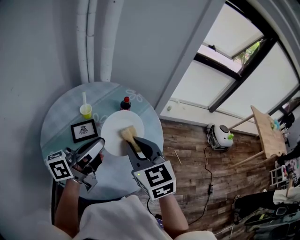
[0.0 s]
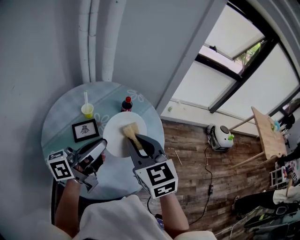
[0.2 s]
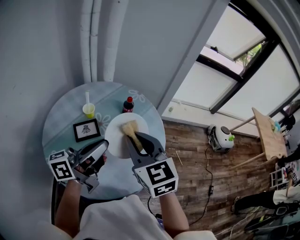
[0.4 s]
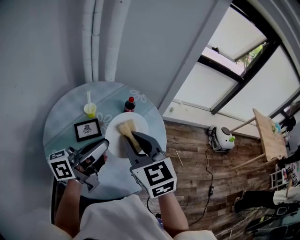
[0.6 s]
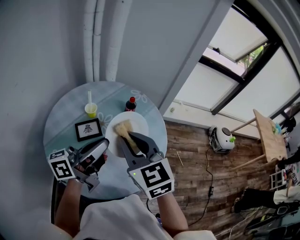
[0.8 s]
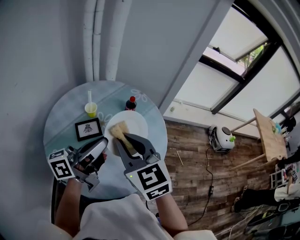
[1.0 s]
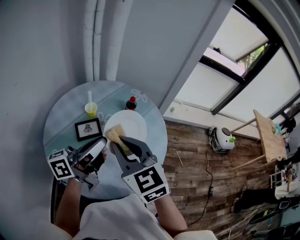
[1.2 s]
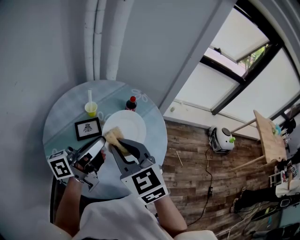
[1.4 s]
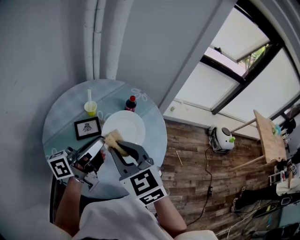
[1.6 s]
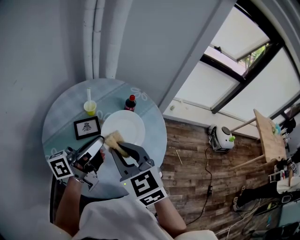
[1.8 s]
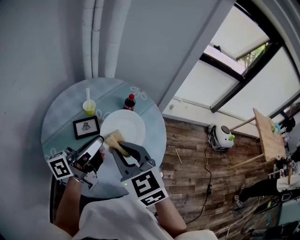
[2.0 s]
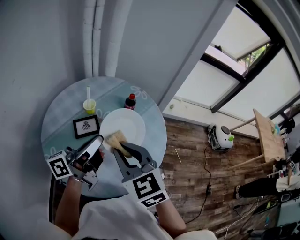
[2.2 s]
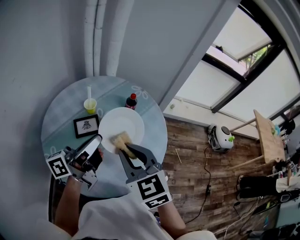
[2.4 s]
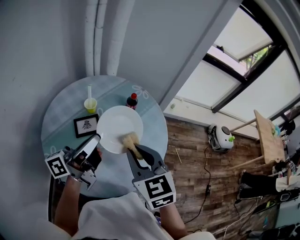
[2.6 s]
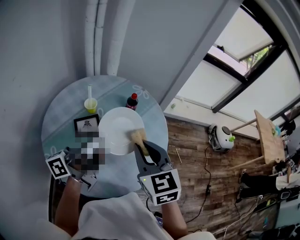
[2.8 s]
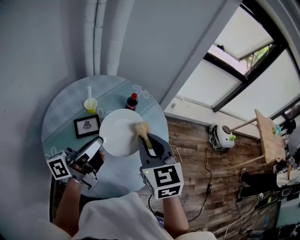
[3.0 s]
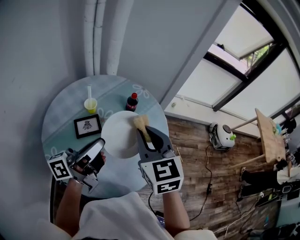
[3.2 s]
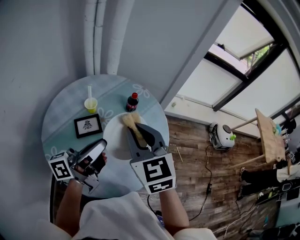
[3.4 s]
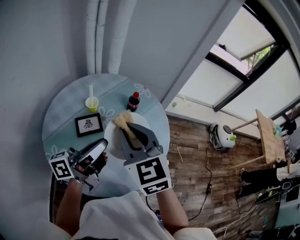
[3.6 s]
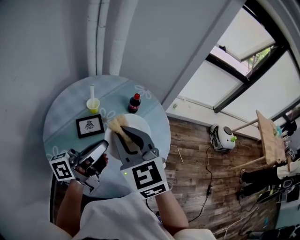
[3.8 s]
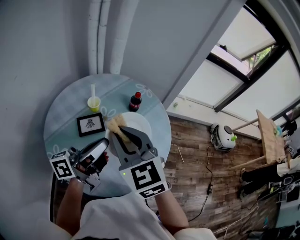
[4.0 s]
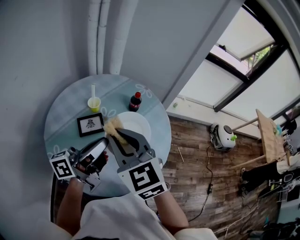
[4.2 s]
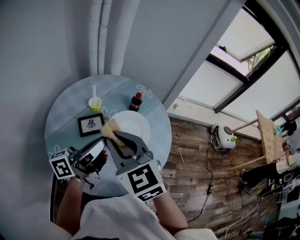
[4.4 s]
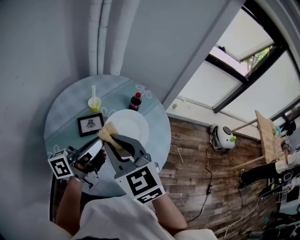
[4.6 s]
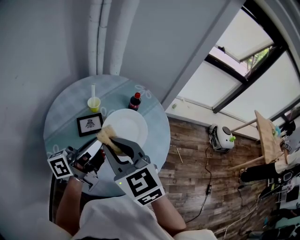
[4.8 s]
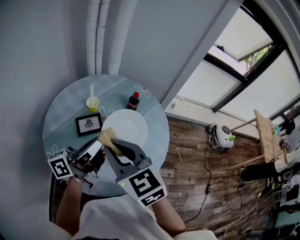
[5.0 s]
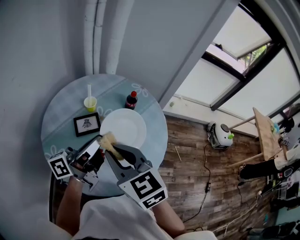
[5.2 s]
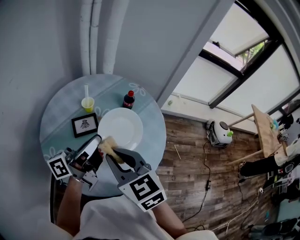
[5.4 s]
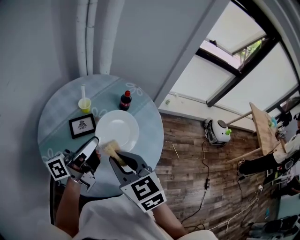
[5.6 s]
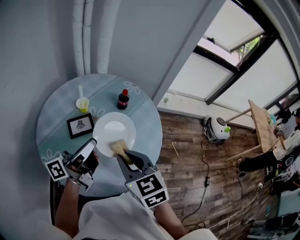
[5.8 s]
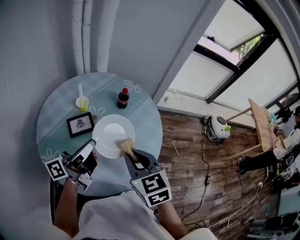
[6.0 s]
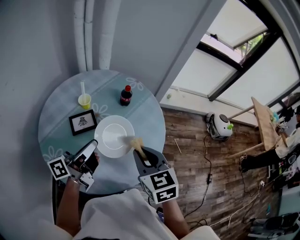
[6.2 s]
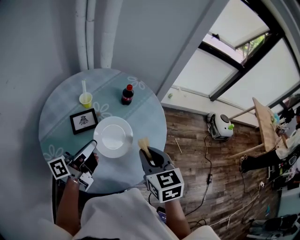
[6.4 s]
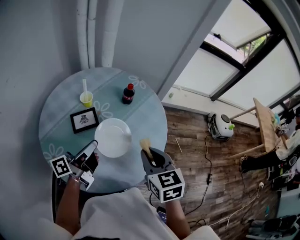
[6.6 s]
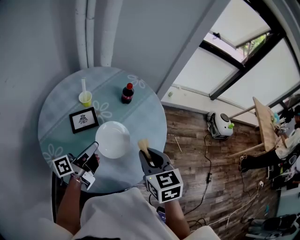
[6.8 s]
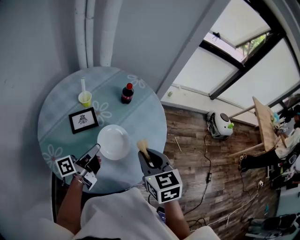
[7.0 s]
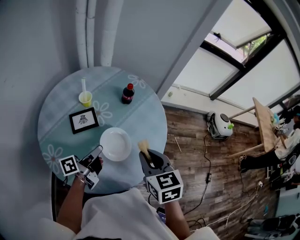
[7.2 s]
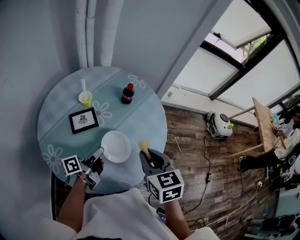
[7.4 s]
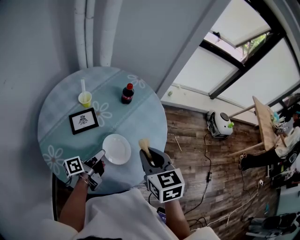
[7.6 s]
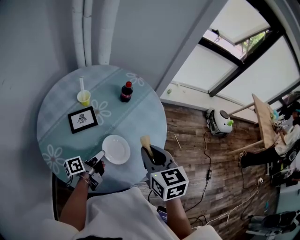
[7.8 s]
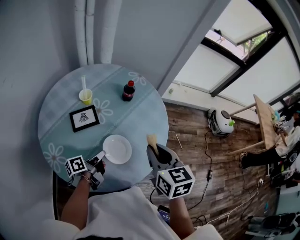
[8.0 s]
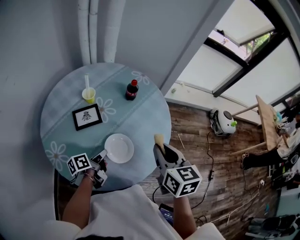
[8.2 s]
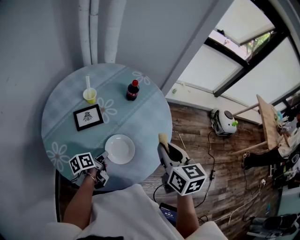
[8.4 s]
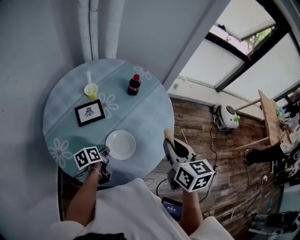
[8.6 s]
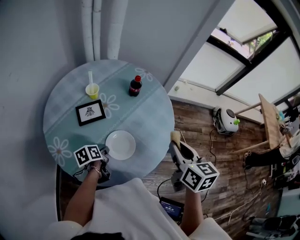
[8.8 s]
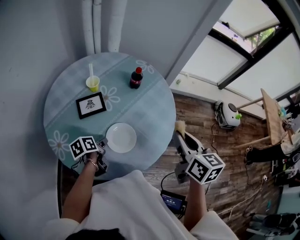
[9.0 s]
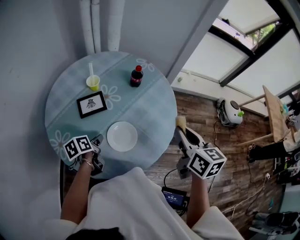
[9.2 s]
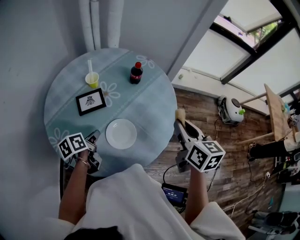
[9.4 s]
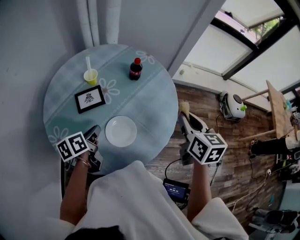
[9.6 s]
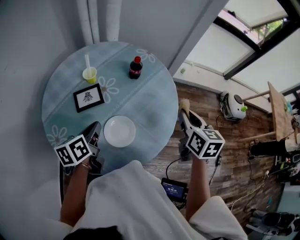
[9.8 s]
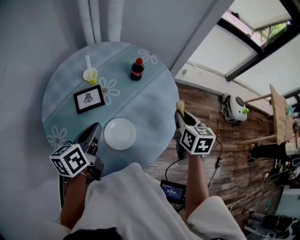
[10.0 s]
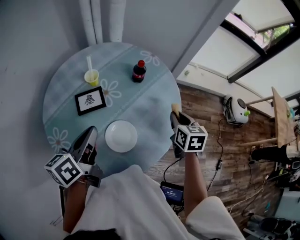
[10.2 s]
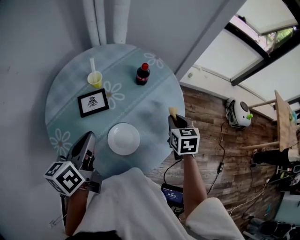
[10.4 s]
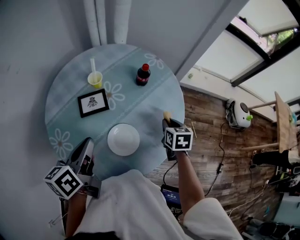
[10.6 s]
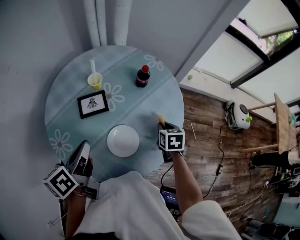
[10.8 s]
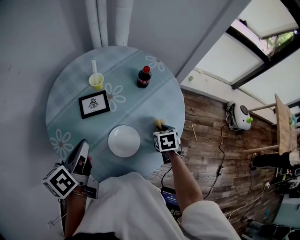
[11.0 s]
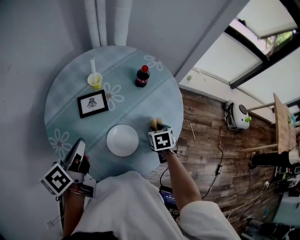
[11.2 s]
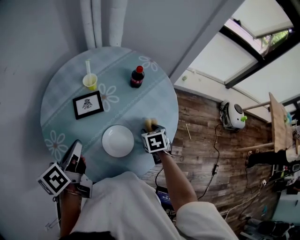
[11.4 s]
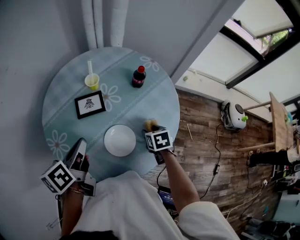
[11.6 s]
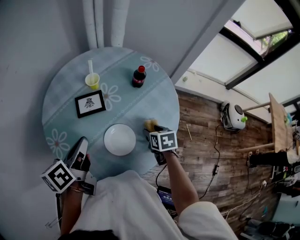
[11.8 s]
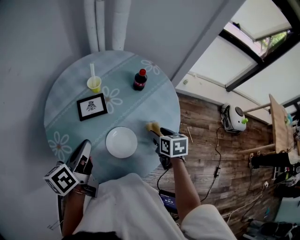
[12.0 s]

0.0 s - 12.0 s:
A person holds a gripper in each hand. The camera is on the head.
0.0 s - 1.6 s: The right gripper heads to the left, covering roughly 5 cm.
1.6 s - 3.0 s: The right gripper moves to the right and forward, roughly 10 cm.
3.0 s - 4.4 s: The right gripper shifts about 10 cm to the left.
4.4 s - 6.0 s: The left gripper goes approximately 5 cm downward; the right gripper heads to the right and downward, covering approximately 15 cm, and swivels some 20 degrees.
6.0 s - 7.6 s: The left gripper moves downward, about 20 cm, and turns by some 30 degrees.
7.6 s - 9.0 s: The left gripper travels downward by about 5 cm, and angles its fingers downward, by some 40 degrees; the right gripper shifts about 10 cm to the right, and rotates some 20 degrees.
9.0 s - 10.4 s: The right gripper shifts about 20 cm downward and forward, and changes its angle by roughly 30 degrees; the left gripper is displaced upward by about 20 cm, turns by approximately 40 degrees, and closes.
10.4 s - 12.0 s: The right gripper moves to the left, roughly 5 cm, and opens up.

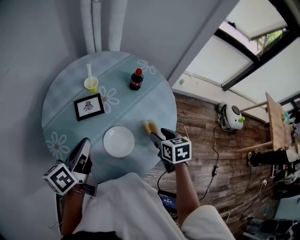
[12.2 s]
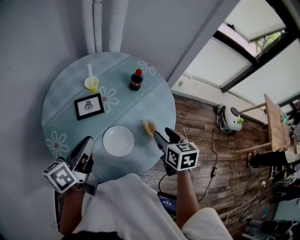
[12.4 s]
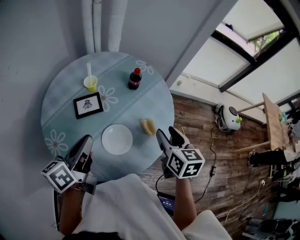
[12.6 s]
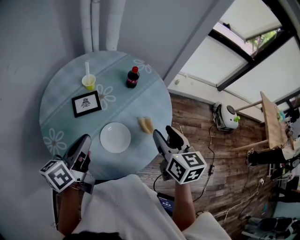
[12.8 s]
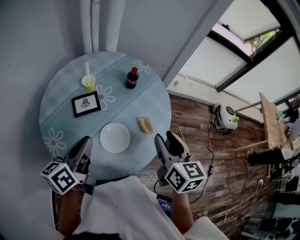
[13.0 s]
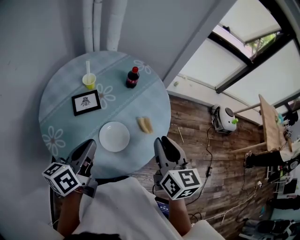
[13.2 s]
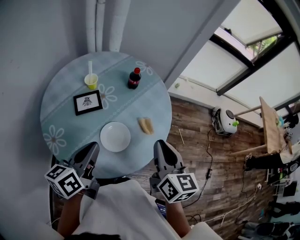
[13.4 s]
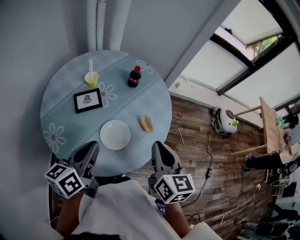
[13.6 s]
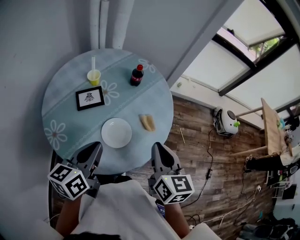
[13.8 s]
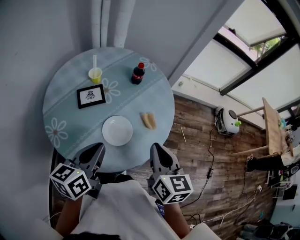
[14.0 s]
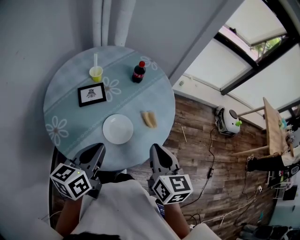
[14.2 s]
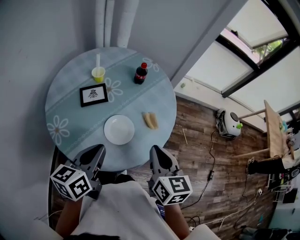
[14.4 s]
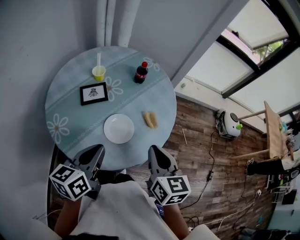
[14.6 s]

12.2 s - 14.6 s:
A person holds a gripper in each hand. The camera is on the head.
12.2 s - 13.4 s: The left gripper shifts by about 5 cm. Meanwhile the right gripper goes some 20 cm upward and backward, points its fingers approximately 30 degrees further upward, and closes up.
13.4 s - 14.6 s: The right gripper shifts by some 5 cm, while the left gripper ends up about 5 cm from where it was.

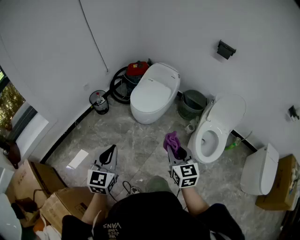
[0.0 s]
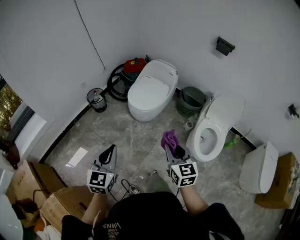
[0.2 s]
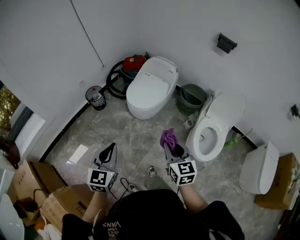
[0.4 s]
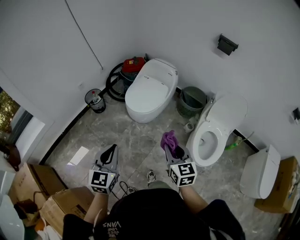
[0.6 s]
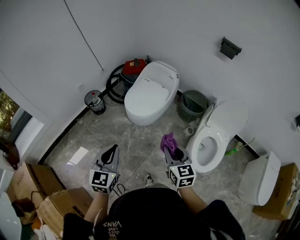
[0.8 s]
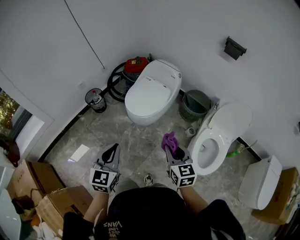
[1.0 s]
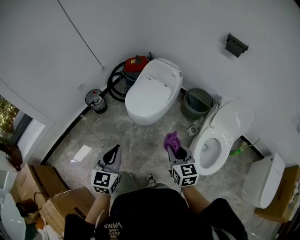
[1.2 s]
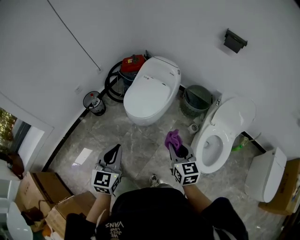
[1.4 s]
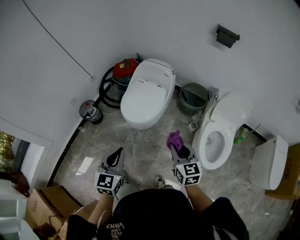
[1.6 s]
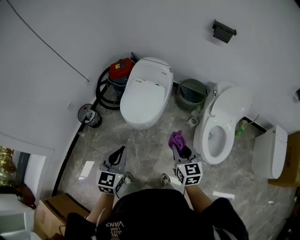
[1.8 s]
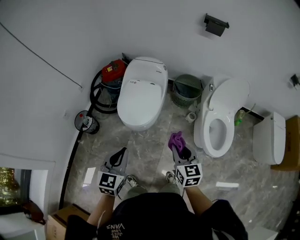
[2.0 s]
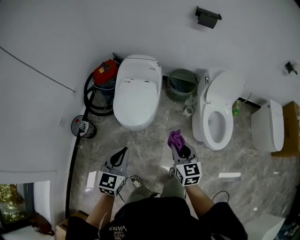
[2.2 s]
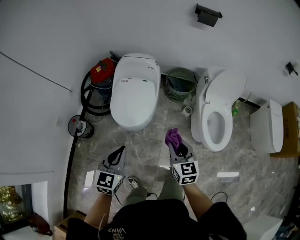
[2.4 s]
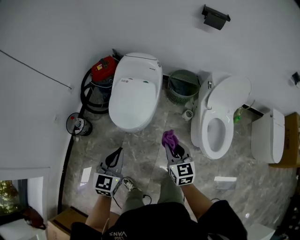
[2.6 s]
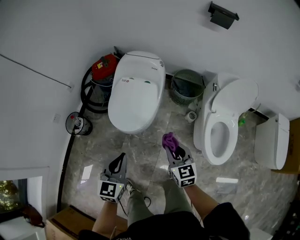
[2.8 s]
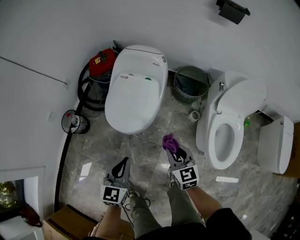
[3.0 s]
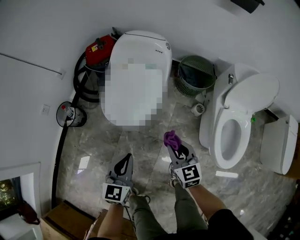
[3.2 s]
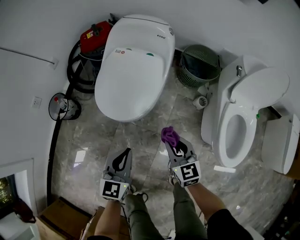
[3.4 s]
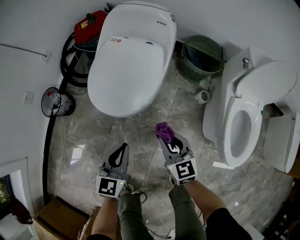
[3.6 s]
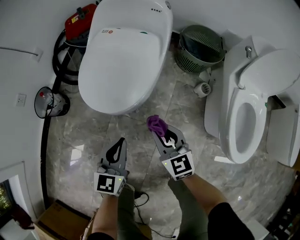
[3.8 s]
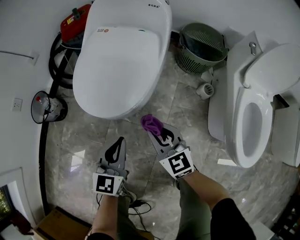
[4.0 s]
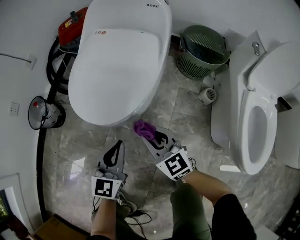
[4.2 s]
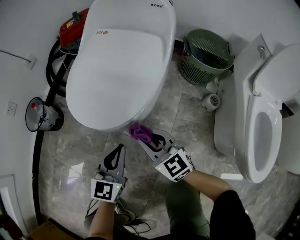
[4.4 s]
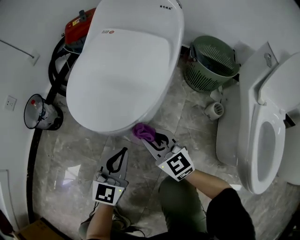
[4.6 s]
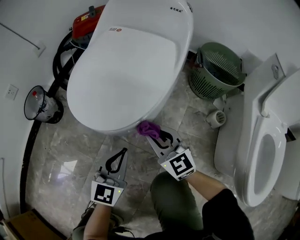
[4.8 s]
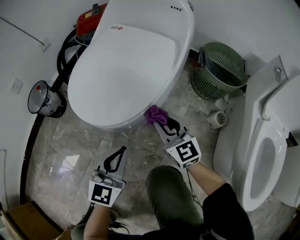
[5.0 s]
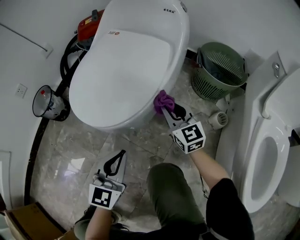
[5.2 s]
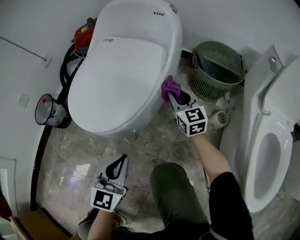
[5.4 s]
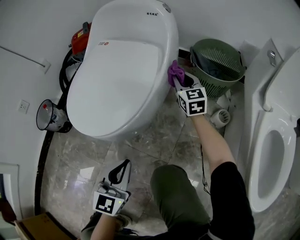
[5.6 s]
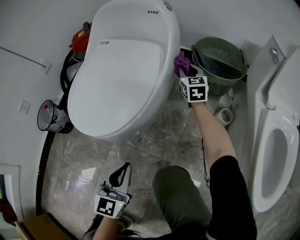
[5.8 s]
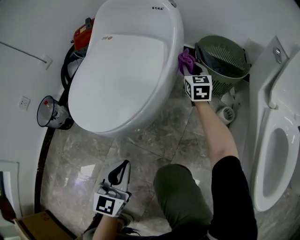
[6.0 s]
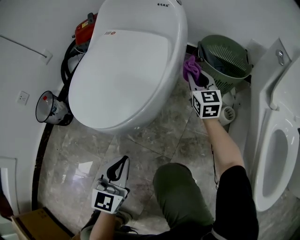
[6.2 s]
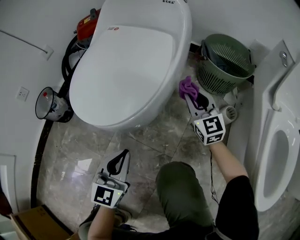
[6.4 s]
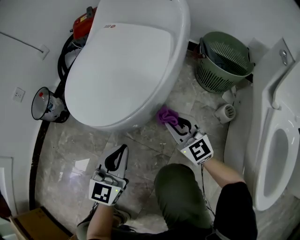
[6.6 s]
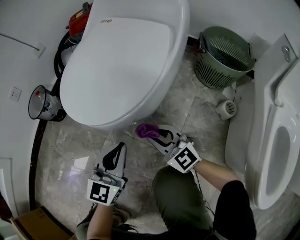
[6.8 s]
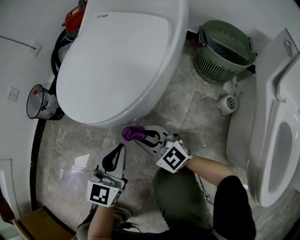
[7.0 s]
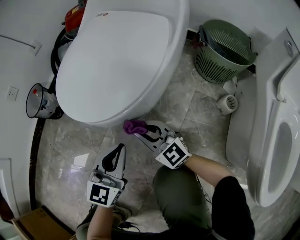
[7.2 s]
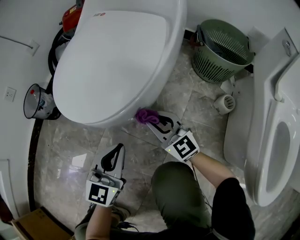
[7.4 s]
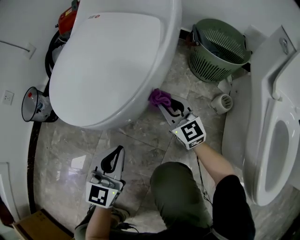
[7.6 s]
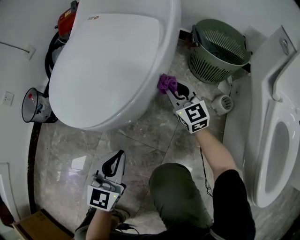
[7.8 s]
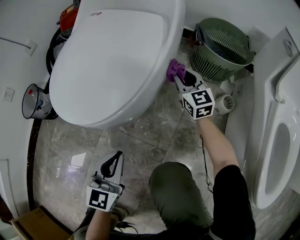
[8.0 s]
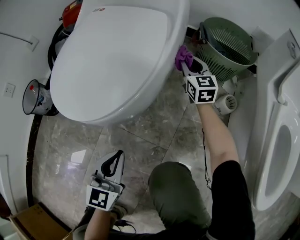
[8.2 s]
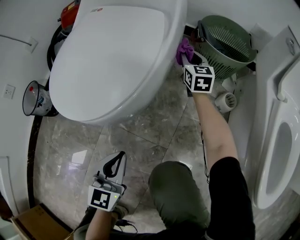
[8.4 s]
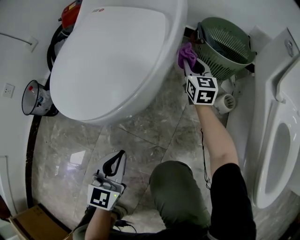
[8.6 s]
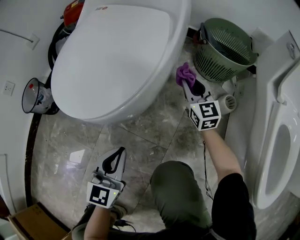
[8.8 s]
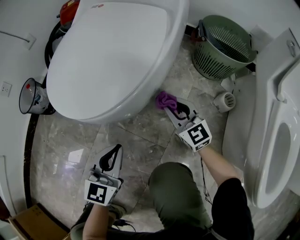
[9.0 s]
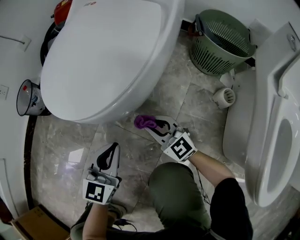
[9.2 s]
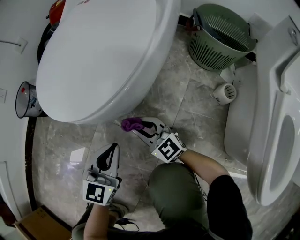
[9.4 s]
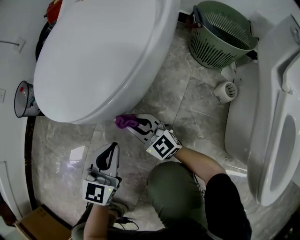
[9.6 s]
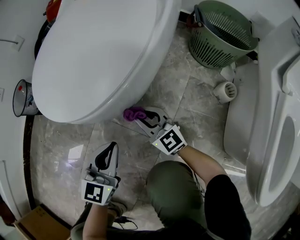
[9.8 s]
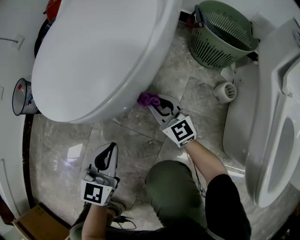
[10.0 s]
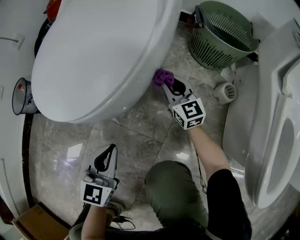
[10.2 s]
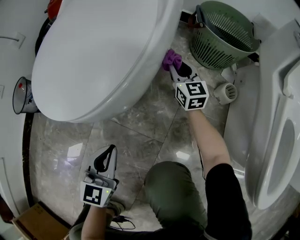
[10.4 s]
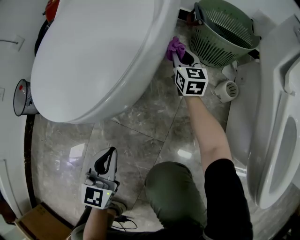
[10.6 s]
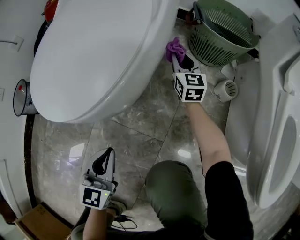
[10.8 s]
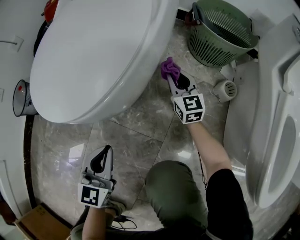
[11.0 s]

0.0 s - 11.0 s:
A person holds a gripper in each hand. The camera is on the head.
0.0 s - 1.6 s: The two grippers go about 25 cm forward and to the right.
1.6 s - 3.2 s: Both grippers travel together downward and forward, approximately 25 cm.
3.2 s - 4.8 s: The two grippers go about 30 cm downward. The right gripper swivels roughly 30 degrees.
4.8 s - 6.2 s: The right gripper moves forward and to the right, roughly 30 cm, and swivels some 30 degrees.
6.2 s - 7.8 s: The right gripper is displaced downward and backward by roughly 10 cm, and moves some 25 cm to the left and comes back.
7.8 s - 9.4 s: The right gripper is displaced backward, to the left and downward by approximately 25 cm, and swivels approximately 30 degrees.
9.4 s - 11.0 s: The right gripper moves to the right and forward, some 25 cm, and turns by some 40 degrees.
